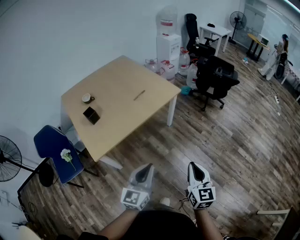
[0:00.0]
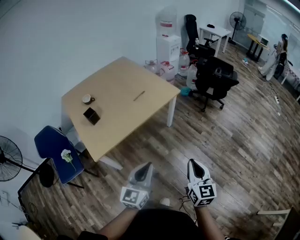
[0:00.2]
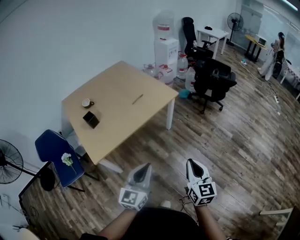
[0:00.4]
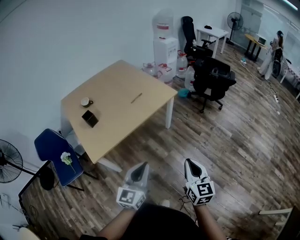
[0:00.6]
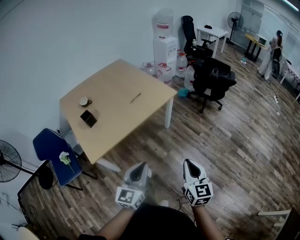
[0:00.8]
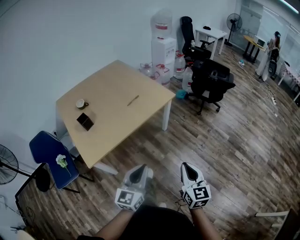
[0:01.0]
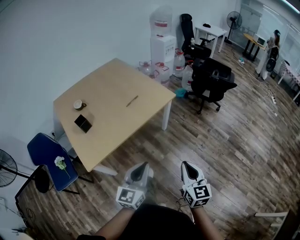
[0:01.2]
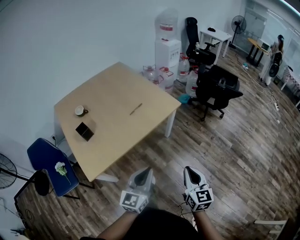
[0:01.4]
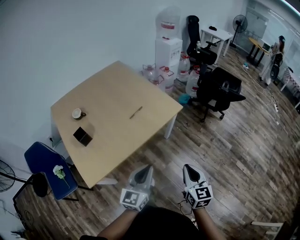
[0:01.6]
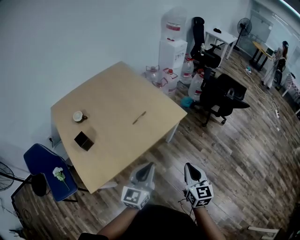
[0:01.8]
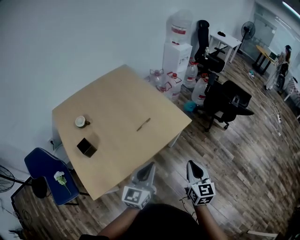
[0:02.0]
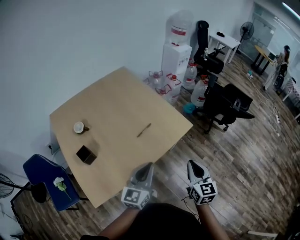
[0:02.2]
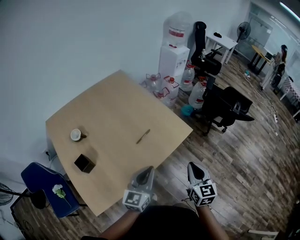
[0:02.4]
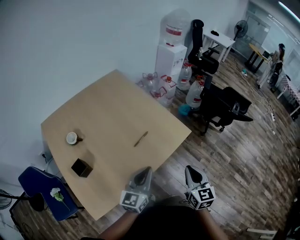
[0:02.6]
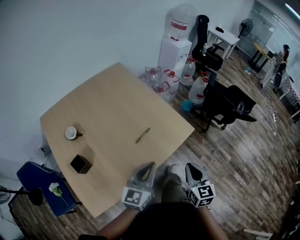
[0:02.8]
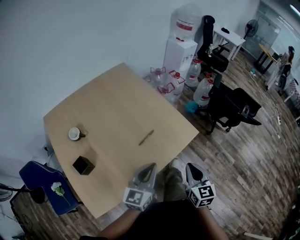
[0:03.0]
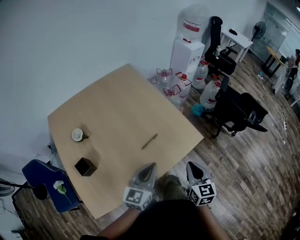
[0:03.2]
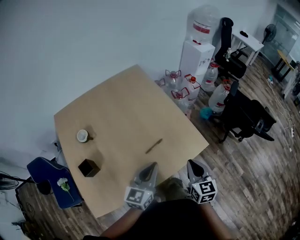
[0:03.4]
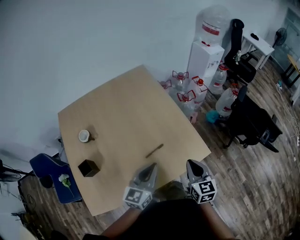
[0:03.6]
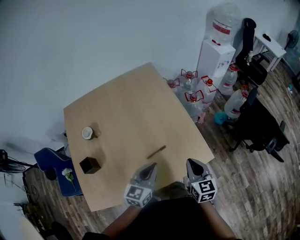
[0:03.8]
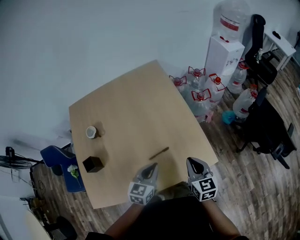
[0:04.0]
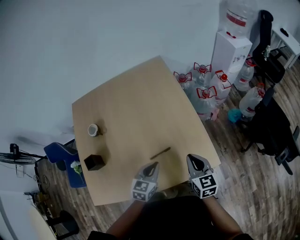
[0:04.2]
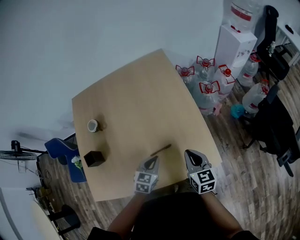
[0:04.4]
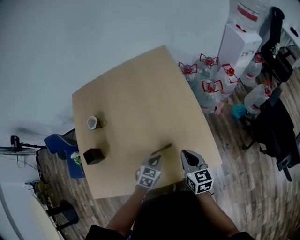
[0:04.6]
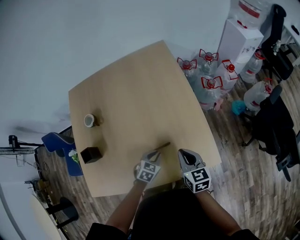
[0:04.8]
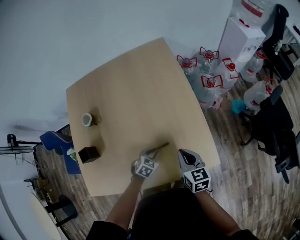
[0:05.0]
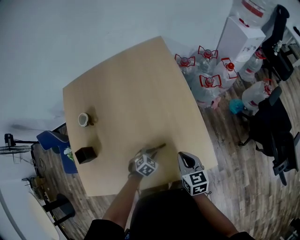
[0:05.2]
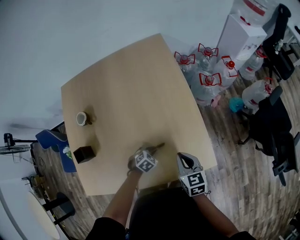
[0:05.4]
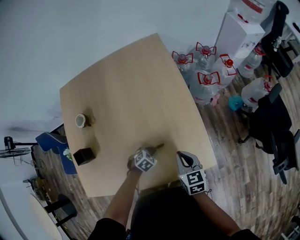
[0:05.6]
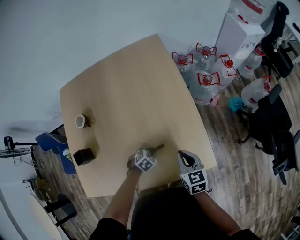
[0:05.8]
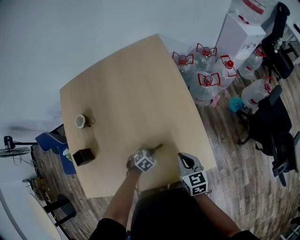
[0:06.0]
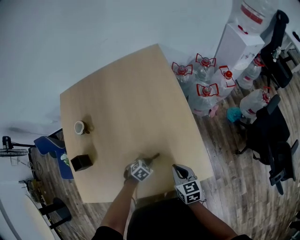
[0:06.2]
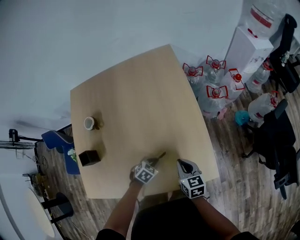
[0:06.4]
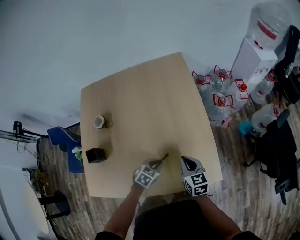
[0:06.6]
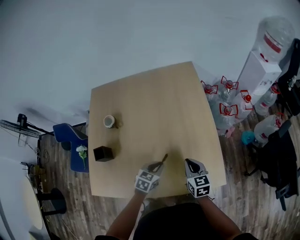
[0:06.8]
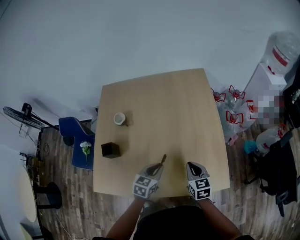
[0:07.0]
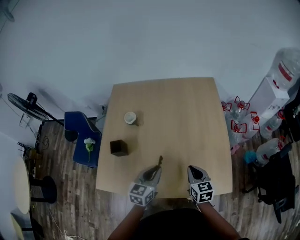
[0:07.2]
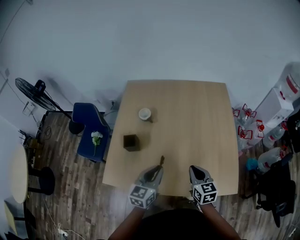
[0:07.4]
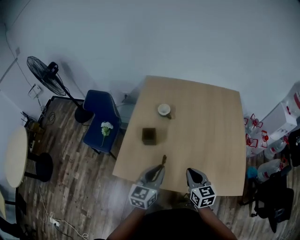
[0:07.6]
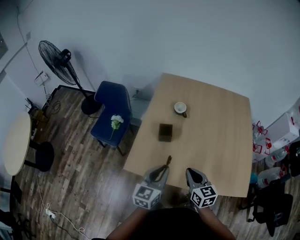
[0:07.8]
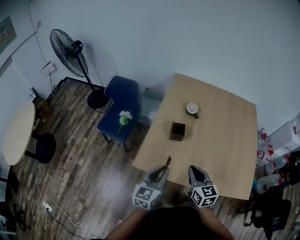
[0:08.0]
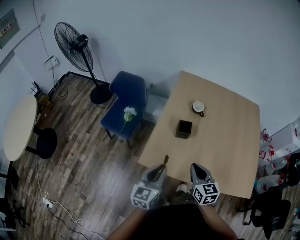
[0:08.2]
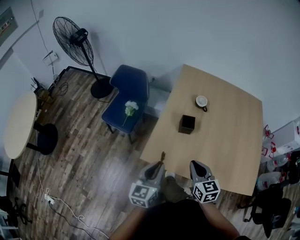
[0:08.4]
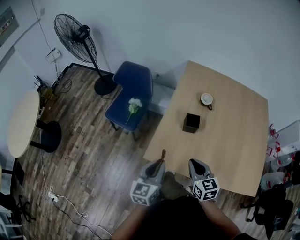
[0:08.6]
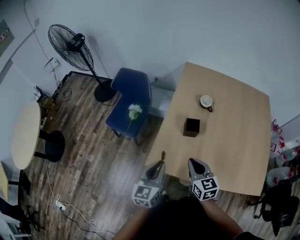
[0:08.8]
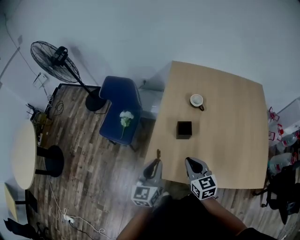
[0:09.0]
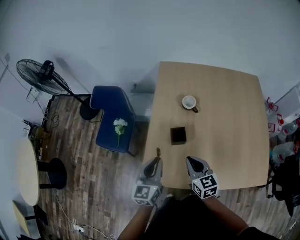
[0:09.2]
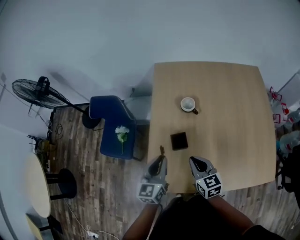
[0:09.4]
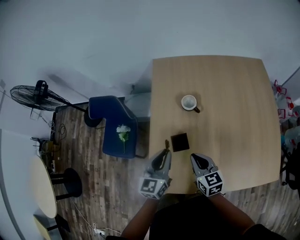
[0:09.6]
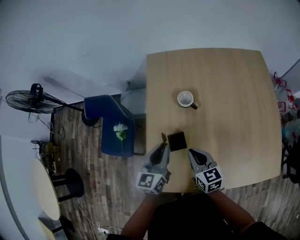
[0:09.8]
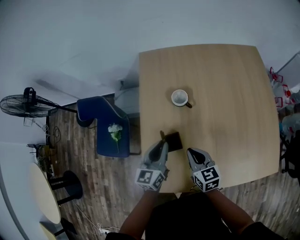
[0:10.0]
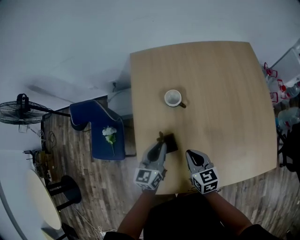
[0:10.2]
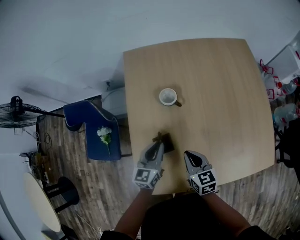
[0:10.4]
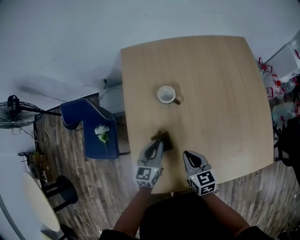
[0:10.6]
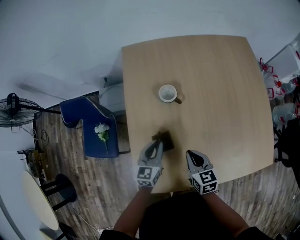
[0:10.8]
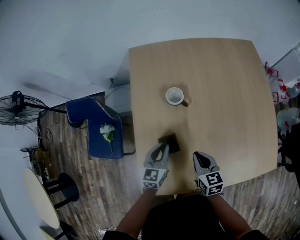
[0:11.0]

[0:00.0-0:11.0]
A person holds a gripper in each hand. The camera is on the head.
0:00.0 to 0:01.6: Both grippers travel together forward, about 25 cm.
0:01.6 to 0:03.2: Both grippers move forward, some 35 cm.
0:03.2 to 0:04.8: The left gripper moves downward, approximately 25 cm, and angles its fingers downward, by approximately 50 degrees. The right gripper changes place by approximately 30 cm, and changes its angle by some 40 degrees.
0:04.8 to 0:06.2: The two grippers go approximately 10 cm downward. The left gripper turns by about 20 degrees.
0:06.2 to 0:07.8: The two grippers travel together, about 50 cm. The left gripper points its fingers about 60 degrees further upward. Meanwhile the right gripper swivels about 30 degrees.
0:07.8 to 0:09.4: The grippers both shift forward by roughly 25 cm.
0:09.4 to 0:11.0: Both grippers move downward, forward and to the right, approximately 20 cm.

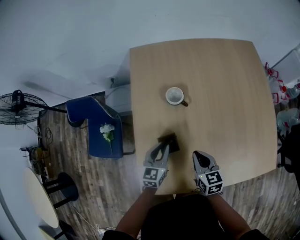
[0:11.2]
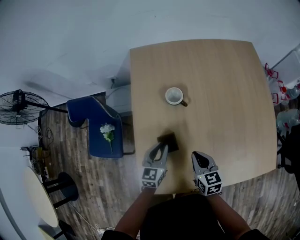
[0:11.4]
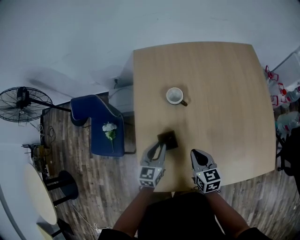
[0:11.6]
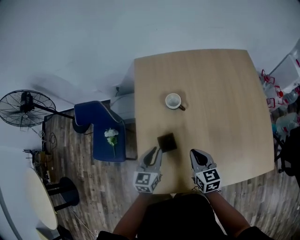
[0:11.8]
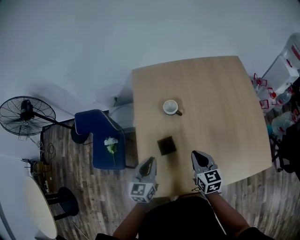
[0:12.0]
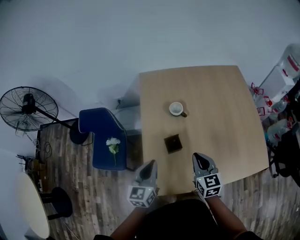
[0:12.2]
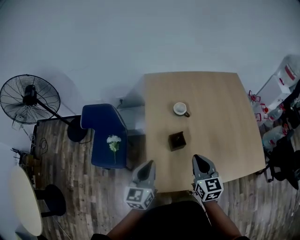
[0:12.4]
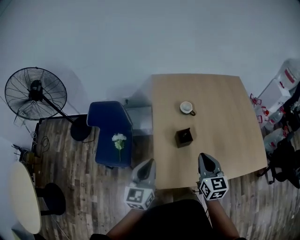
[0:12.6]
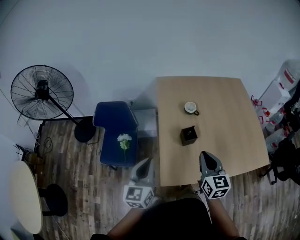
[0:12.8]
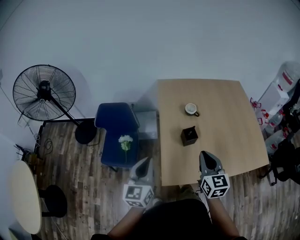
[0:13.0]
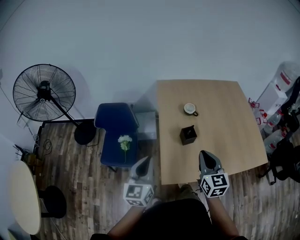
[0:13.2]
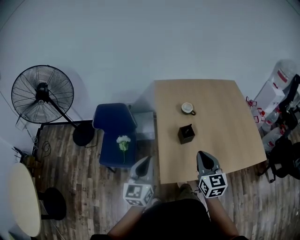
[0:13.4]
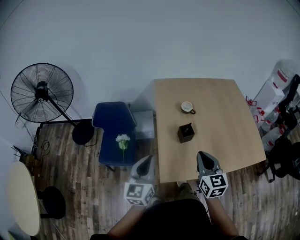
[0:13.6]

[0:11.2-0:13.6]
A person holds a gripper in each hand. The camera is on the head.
0:11.2 to 0:12.4: The grippers both shift upward, backward and to the left by approximately 30 cm. The right gripper turns by approximately 20 degrees.
0:12.4 to 0:13.6: Both grippers travel together backward and to the left, roughly 15 cm.

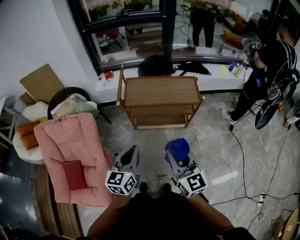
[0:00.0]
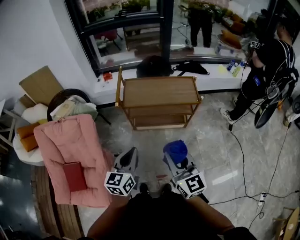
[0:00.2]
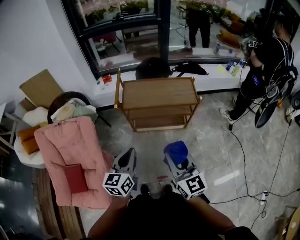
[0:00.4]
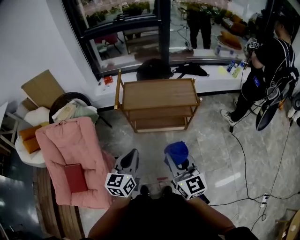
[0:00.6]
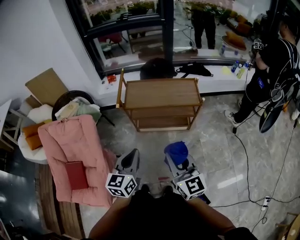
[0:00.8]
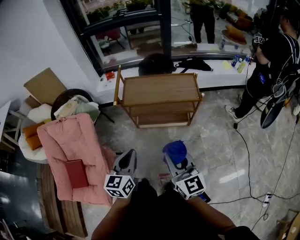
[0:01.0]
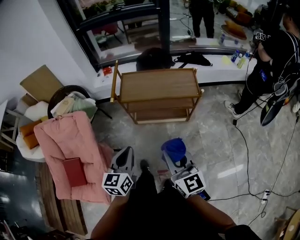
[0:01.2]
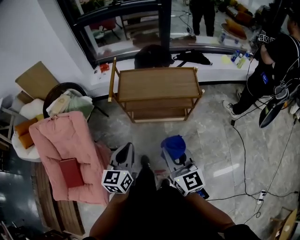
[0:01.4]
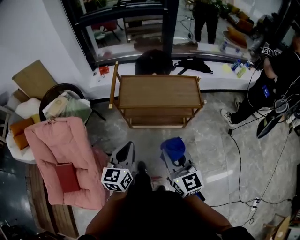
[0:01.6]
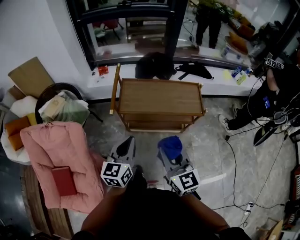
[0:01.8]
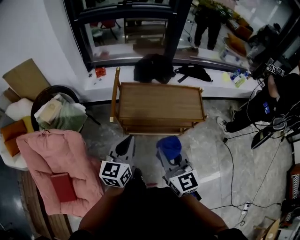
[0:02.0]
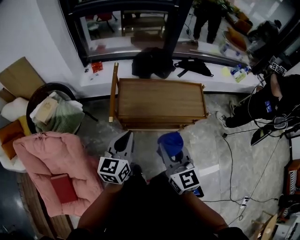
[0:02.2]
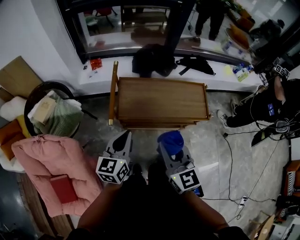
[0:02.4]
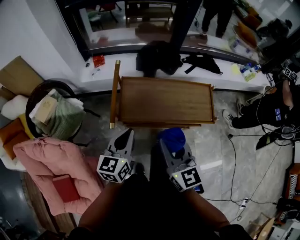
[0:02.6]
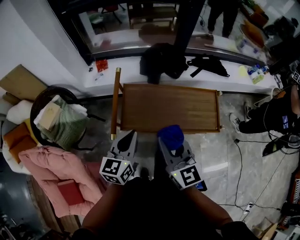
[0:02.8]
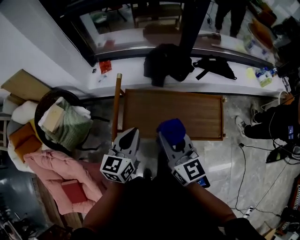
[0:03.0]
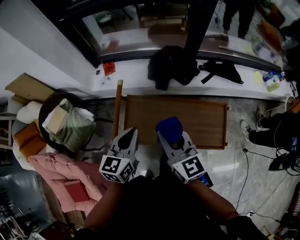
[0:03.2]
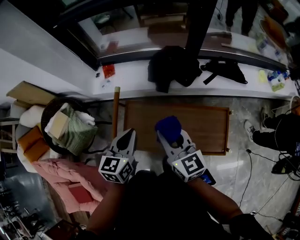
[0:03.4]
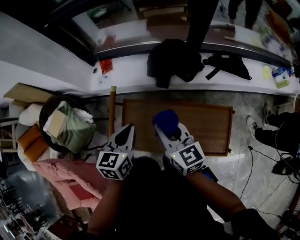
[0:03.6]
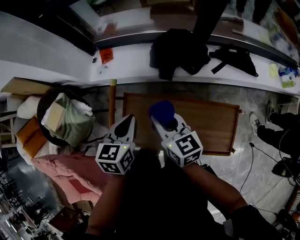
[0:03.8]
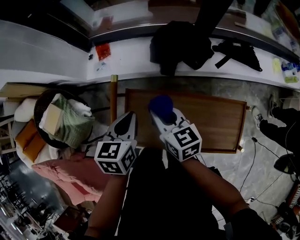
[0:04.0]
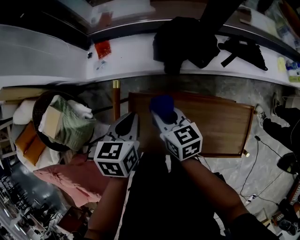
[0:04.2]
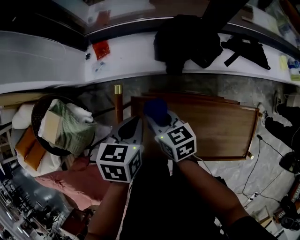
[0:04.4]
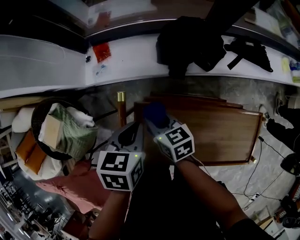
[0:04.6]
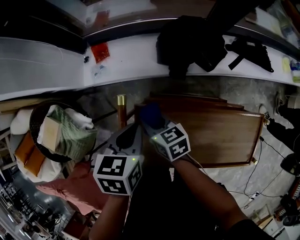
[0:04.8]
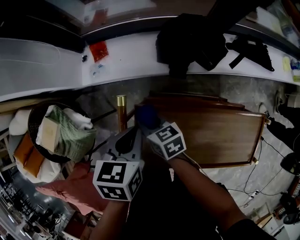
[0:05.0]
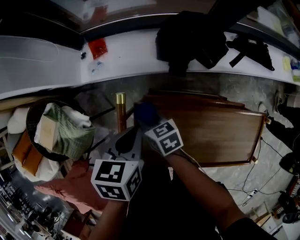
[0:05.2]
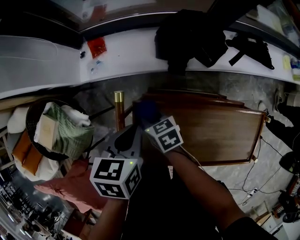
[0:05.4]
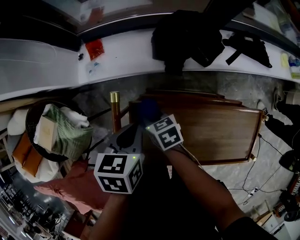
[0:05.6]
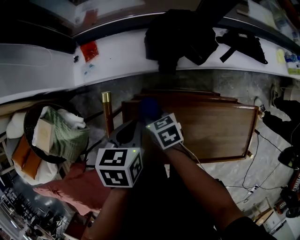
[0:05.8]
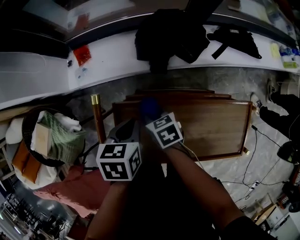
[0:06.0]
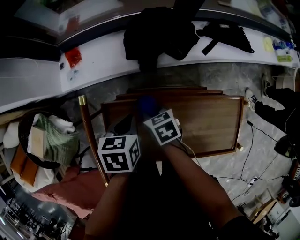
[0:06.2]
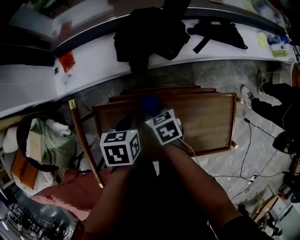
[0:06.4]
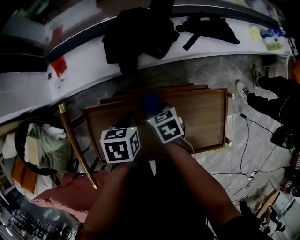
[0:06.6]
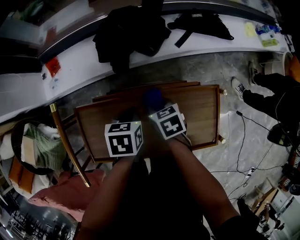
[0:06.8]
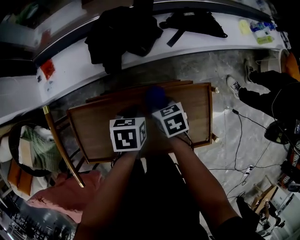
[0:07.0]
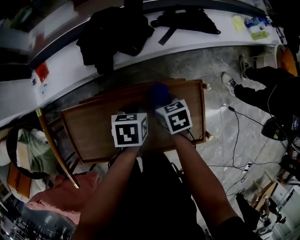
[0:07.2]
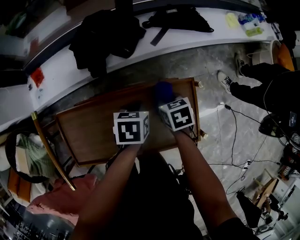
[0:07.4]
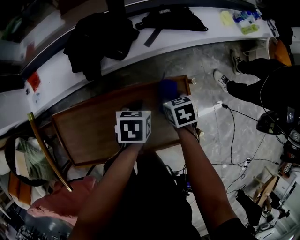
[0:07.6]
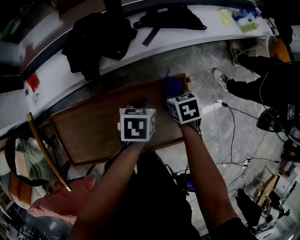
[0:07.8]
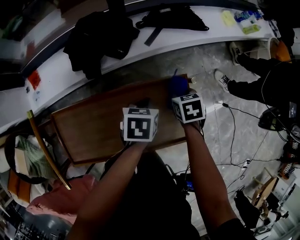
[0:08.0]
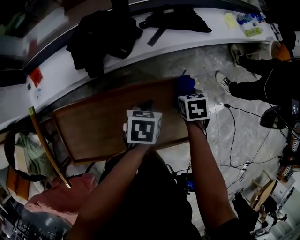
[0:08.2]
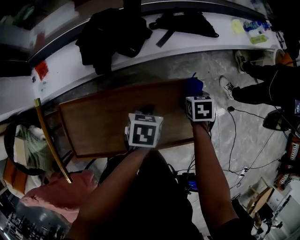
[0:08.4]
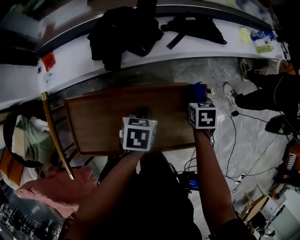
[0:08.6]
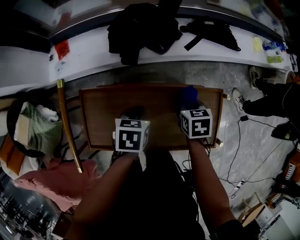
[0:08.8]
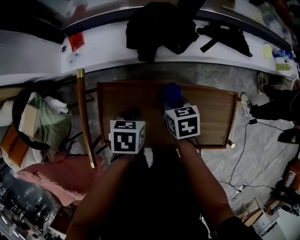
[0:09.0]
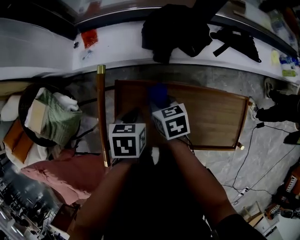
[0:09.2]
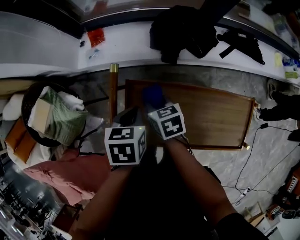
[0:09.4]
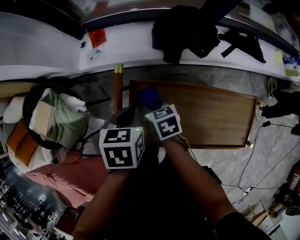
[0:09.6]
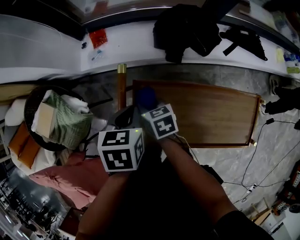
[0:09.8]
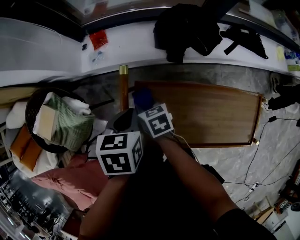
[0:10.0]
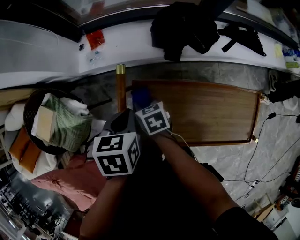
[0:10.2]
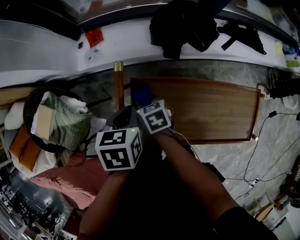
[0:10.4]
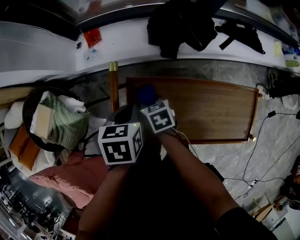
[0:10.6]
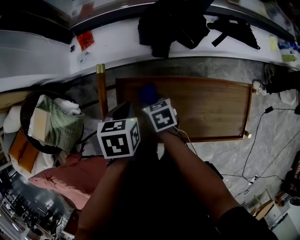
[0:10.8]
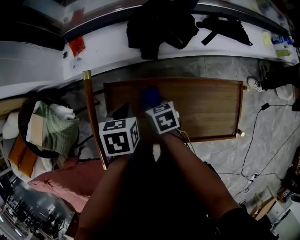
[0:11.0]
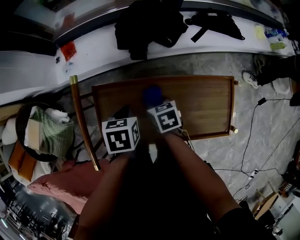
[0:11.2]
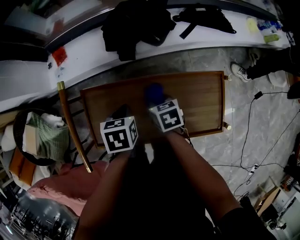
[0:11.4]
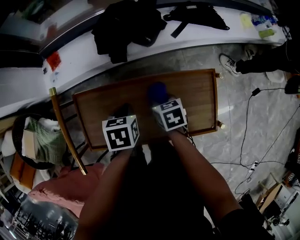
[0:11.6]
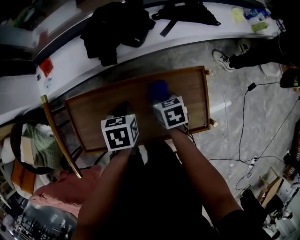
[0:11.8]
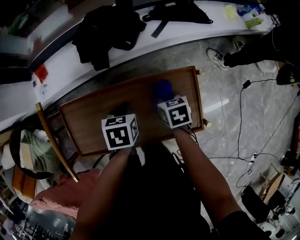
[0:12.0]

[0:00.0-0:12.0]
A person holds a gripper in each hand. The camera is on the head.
0:00.0 to 0:01.6: Both grippers travel together forward, about 10 cm.
0:01.6 to 0:03.0: Both grippers move forward, some 35 cm.
0:03.0 to 0:04.4: The two grippers go roughly 30 cm forward and downward. The right gripper turns by approximately 40 degrees. The left gripper tips its fingers downward by about 40 degrees.
0:04.4 to 0:06.0: The right gripper shifts about 10 cm downward, and swivels approximately 20 degrees. Meanwhile the left gripper heads downward, covering some 5 cm.
0:06.0 to 0:07.6: The left gripper changes place by some 35 cm; the right gripper shifts by roughly 40 cm, and rotates roughly 20 degrees.
0:07.6 to 0:09.0: The left gripper ends up some 25 cm from where it was; the right gripper ends up roughly 25 cm from where it was.
0:09.0 to 0:10.4: The right gripper shifts roughly 25 cm to the left, while the left gripper is displaced to the left and upward by roughly 15 cm.
0:10.4 to 0:12.0: The grippers both shift to the right by some 35 cm. The right gripper turns by about 20 degrees.
